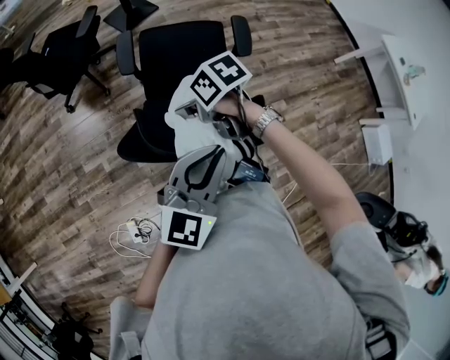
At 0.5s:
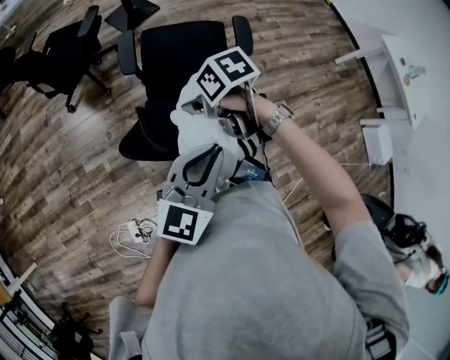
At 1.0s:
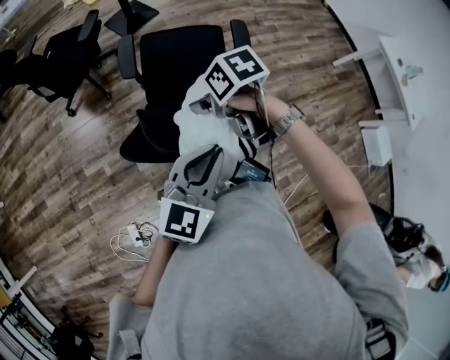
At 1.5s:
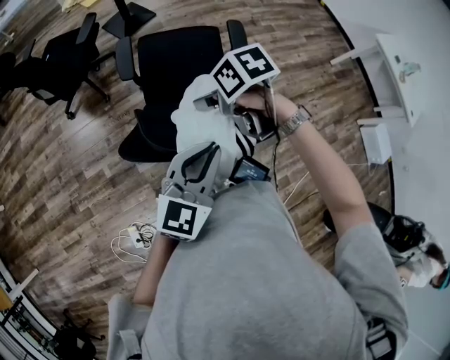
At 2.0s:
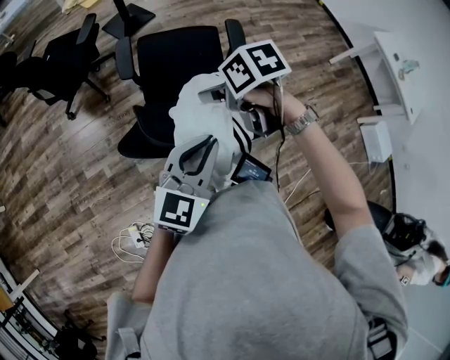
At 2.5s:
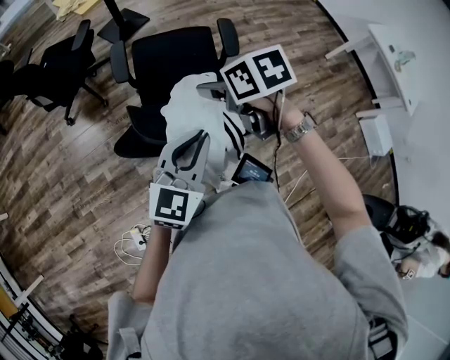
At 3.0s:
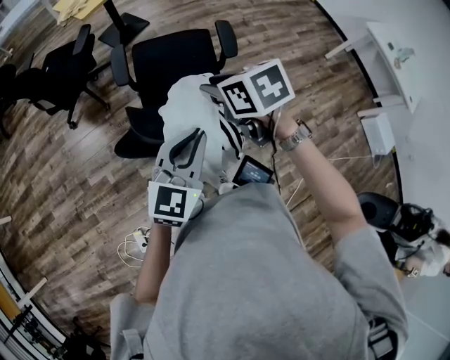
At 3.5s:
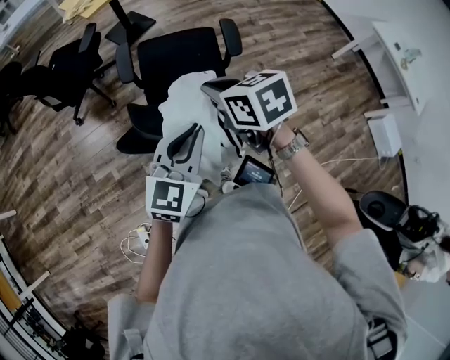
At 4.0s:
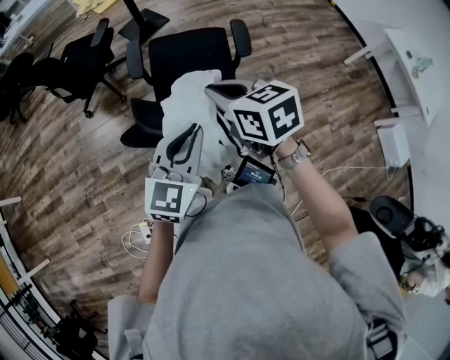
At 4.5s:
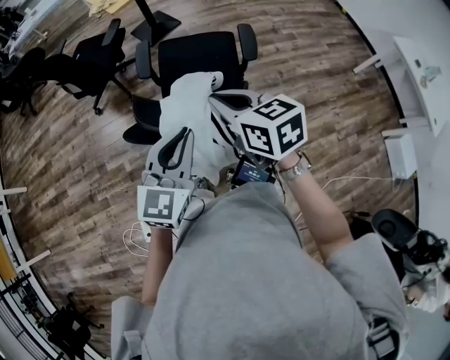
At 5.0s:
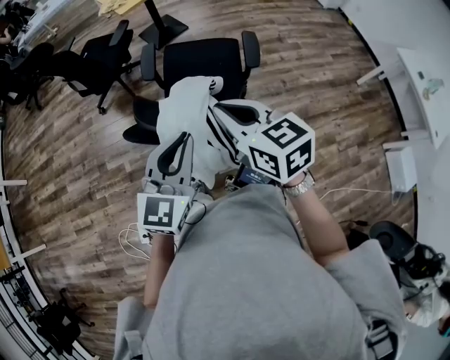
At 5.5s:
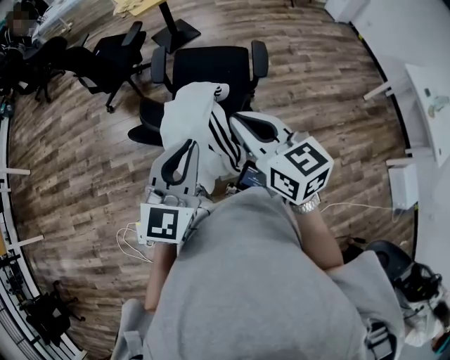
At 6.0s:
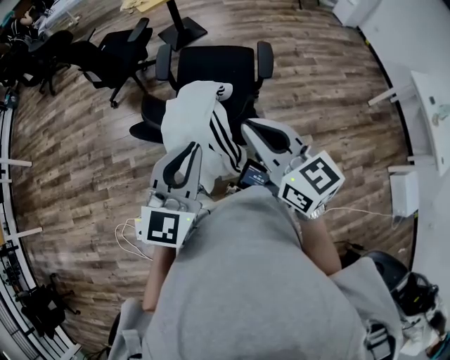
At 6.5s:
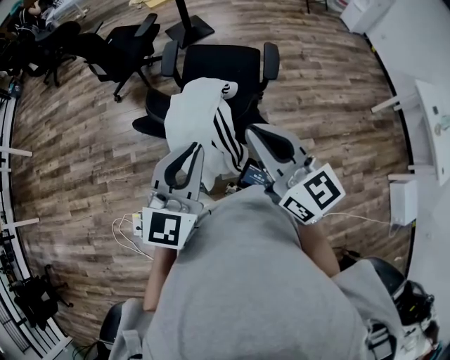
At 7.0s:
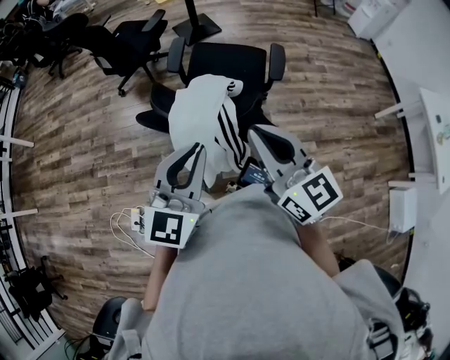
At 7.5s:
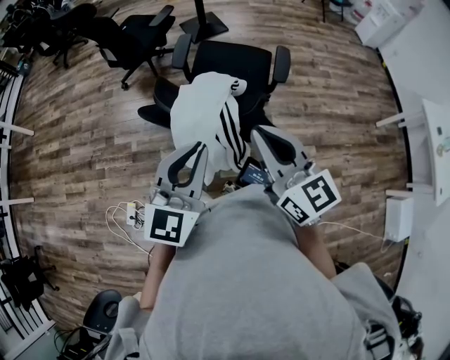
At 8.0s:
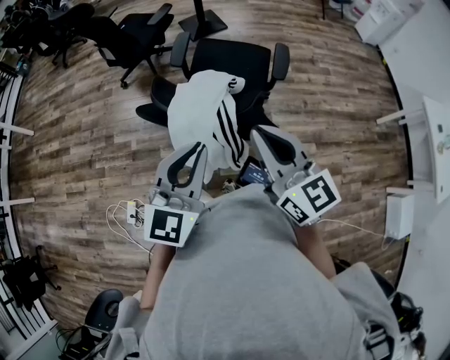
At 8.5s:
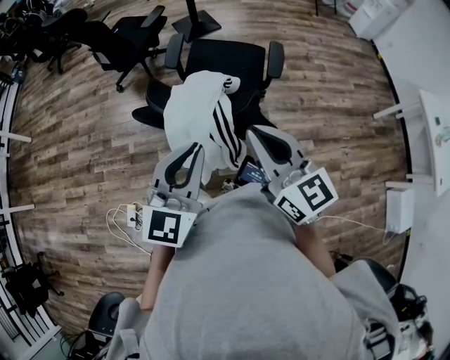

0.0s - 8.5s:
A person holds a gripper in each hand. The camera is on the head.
0.0s - 2.0s: The right gripper shifts by some 10 cm.
2.0s - 4.0s: The right gripper shifts approximately 10 cm upward and backward, rotates about 30 degrees, and closes.
4.0s - 6.5s: The left gripper heads backward and upward, covering some 10 cm. Meanwhile the right gripper shifts some 15 cm backward, upward and to the right, and points its fingers approximately 30 degrees further upward.
6.5s - 8.5s: The grippers make only small movements.

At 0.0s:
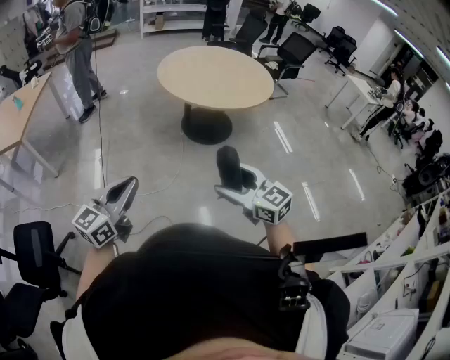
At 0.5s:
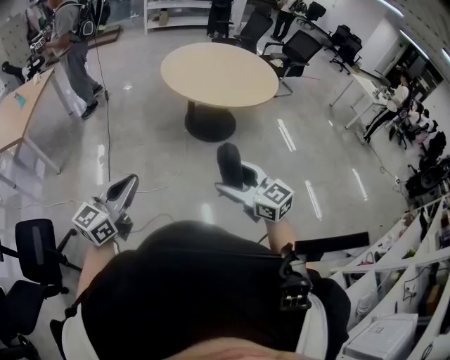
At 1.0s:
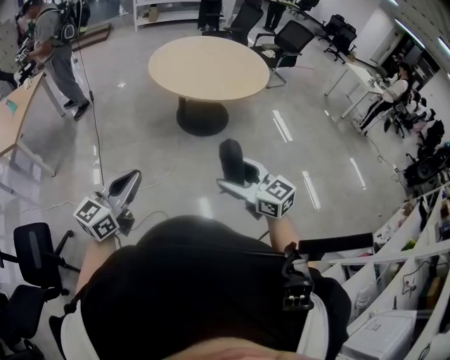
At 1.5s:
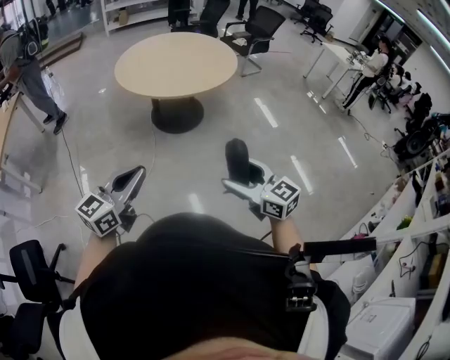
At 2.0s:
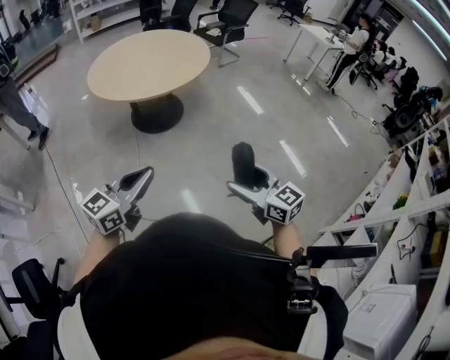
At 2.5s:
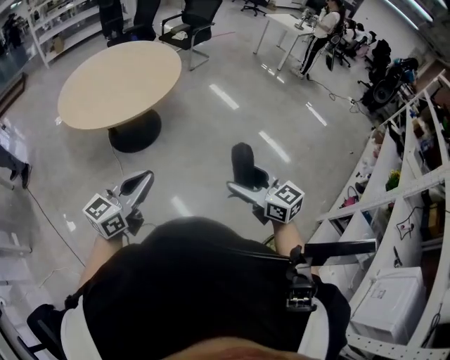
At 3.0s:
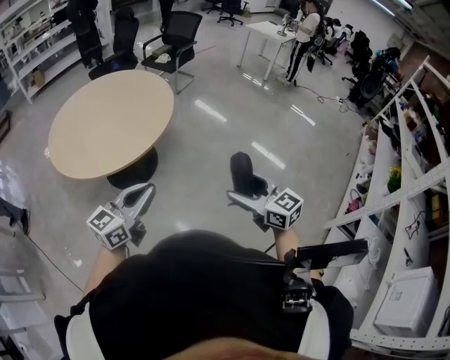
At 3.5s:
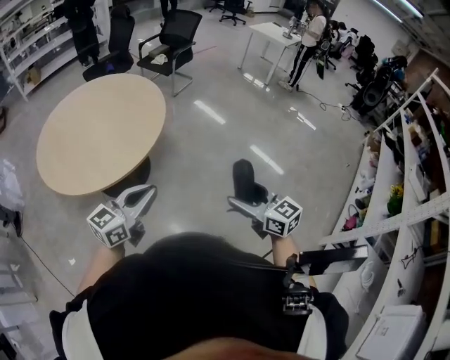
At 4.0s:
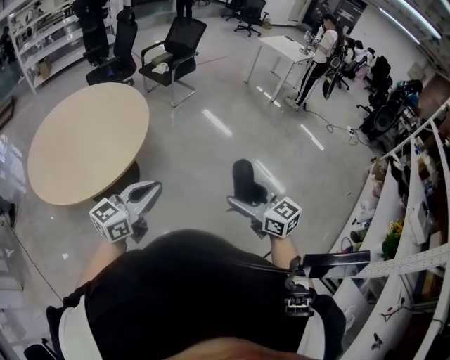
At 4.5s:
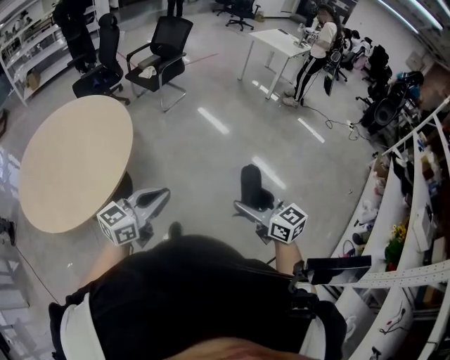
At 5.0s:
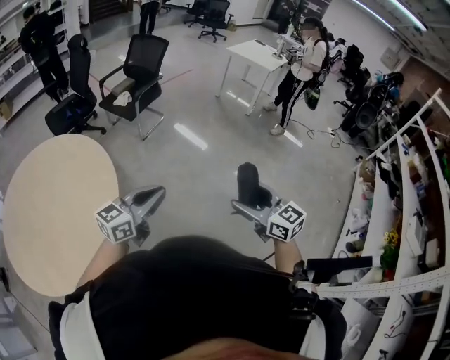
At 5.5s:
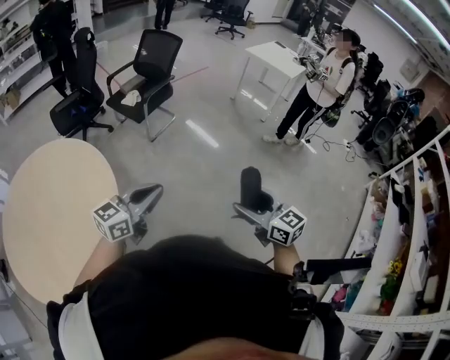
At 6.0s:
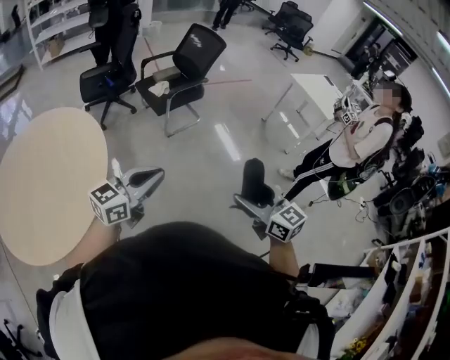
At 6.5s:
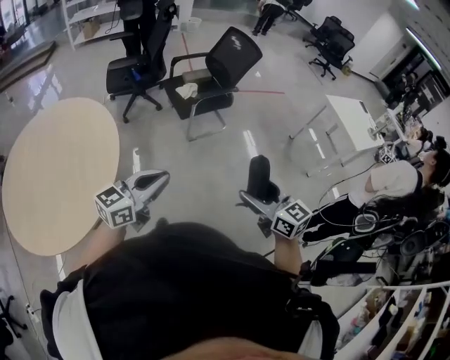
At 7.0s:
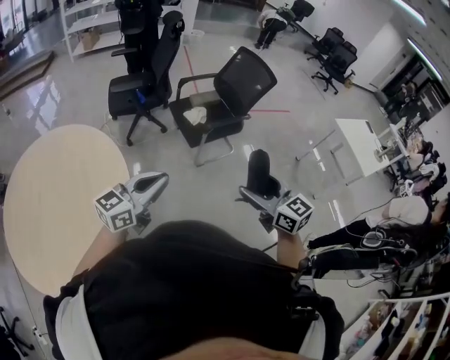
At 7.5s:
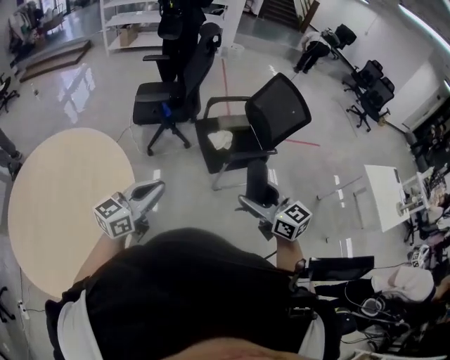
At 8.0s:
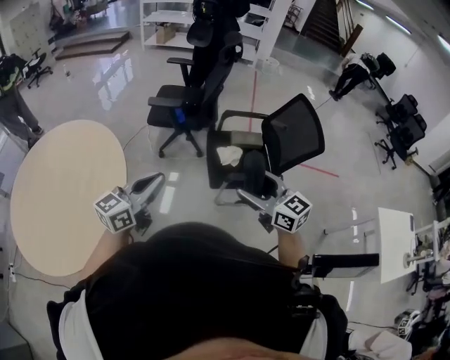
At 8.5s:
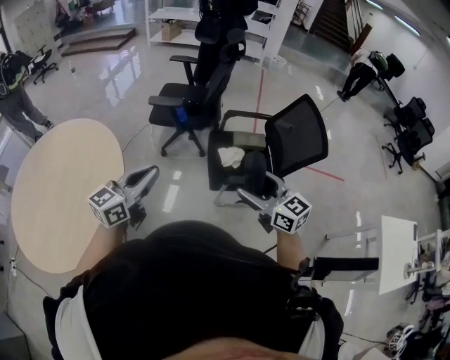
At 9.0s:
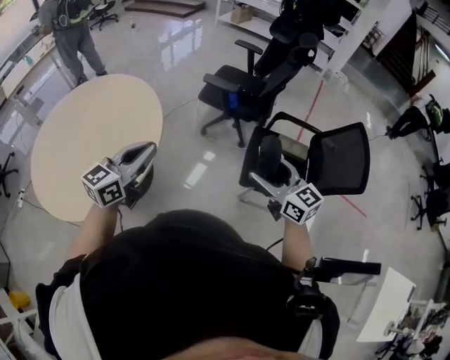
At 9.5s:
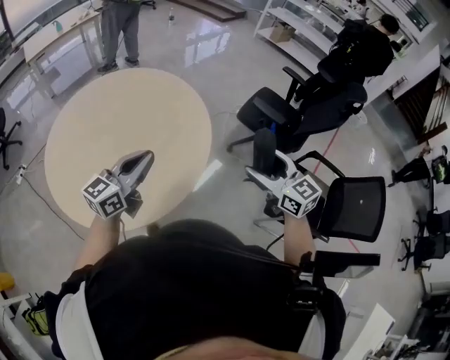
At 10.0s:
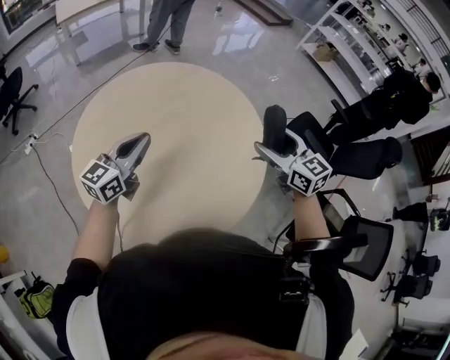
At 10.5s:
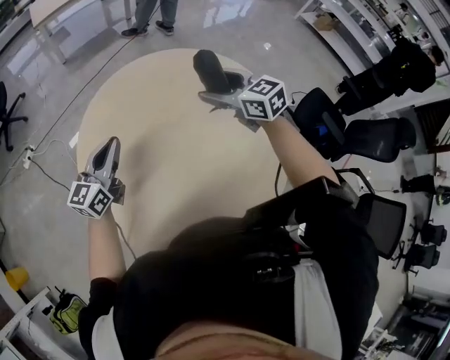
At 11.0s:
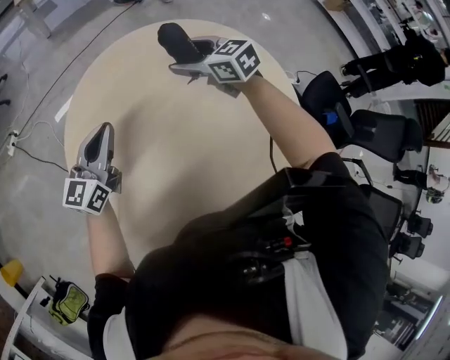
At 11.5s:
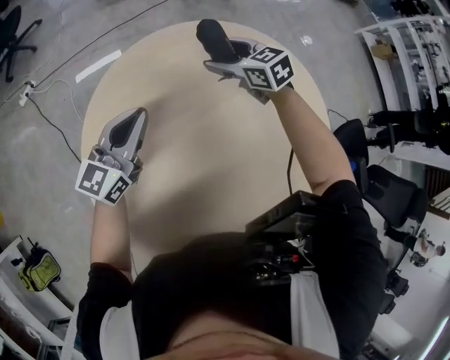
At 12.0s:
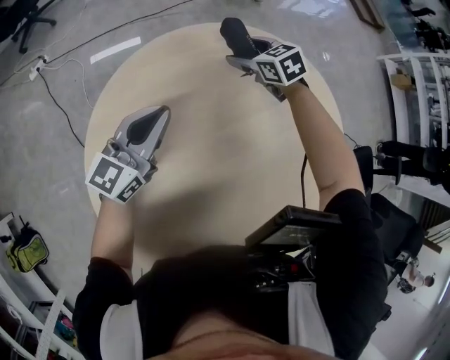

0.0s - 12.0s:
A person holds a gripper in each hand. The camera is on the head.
0.0s - 2.0s: Both grippers travel together to the right, approximately 30 cm. The left gripper swivels roughly 20 degrees, while the right gripper rotates approximately 20 degrees.
2.0s - 4.0s: Both grippers are carried forward and to the right, about 50 cm.
4.0s - 6.0s: The pair of grippers is taken forward, about 70 cm.
6.0s - 8.0s: The two grippers travel together, some 60 cm. The right gripper rotates roughly 40 degrees. The left gripper rotates approximately 40 degrees.
8.0s - 10.0s: The two grippers travel together, about 70 cm. The right gripper changes its angle by about 40 degrees. Meanwhile the left gripper changes its angle by approximately 50 degrees.
10.0s - 12.0s: The left gripper is displaced forward, downward and to the left by some 40 cm; the right gripper travels forward, downward and to the left by approximately 70 cm, and points its fingers some 30 degrees further downward.

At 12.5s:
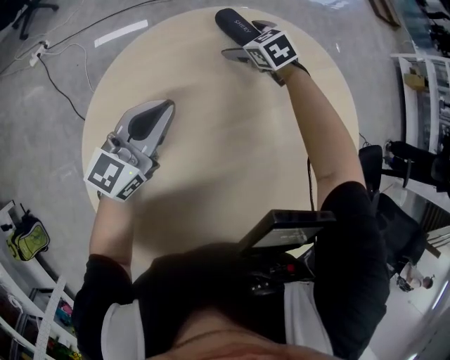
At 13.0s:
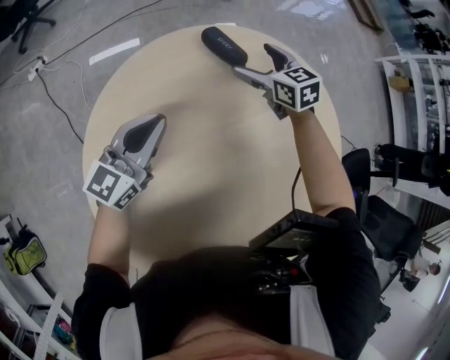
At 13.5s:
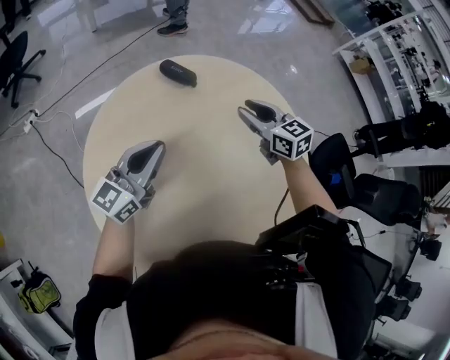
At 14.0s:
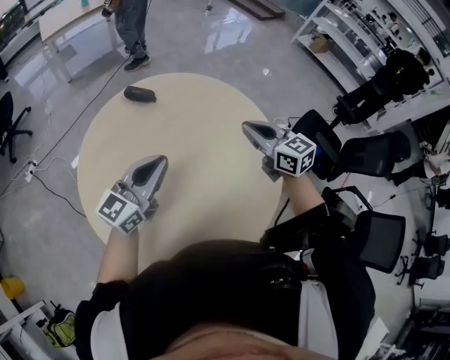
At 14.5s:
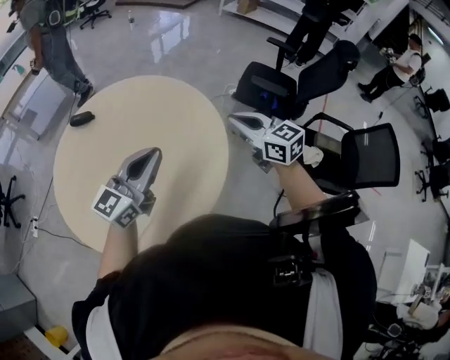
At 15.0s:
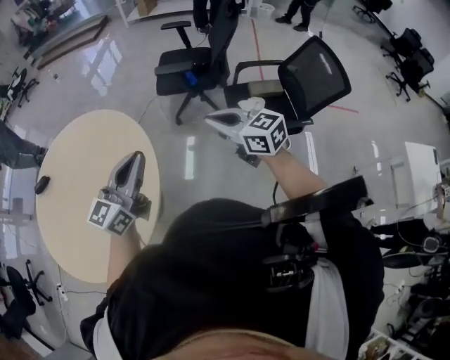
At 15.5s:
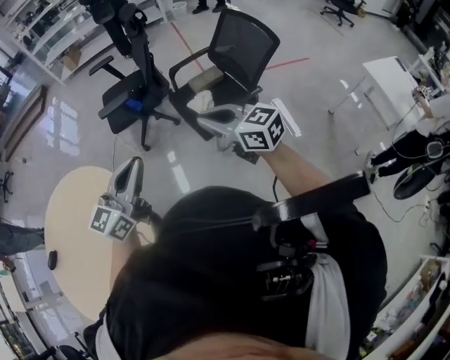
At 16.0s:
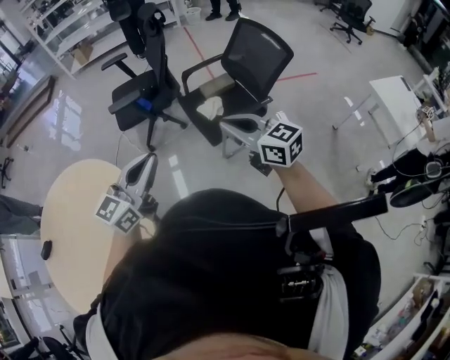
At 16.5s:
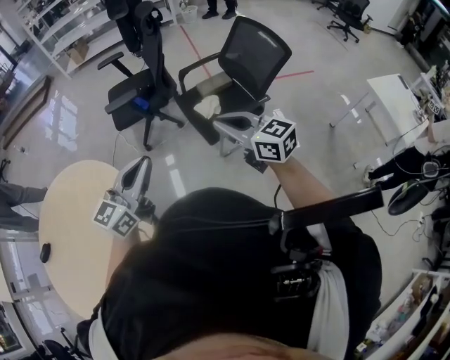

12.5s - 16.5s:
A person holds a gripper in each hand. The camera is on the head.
12.5s - 14.5s: Both grippers are carried about 70 cm. The right gripper tilts its fingers roughly 40 degrees upward, and closes its fingers, while the left gripper rotates about 40 degrees.
14.5s - 16.5s: The two grippers travel together, roughly 50 cm. The right gripper rotates roughly 40 degrees. The left gripper rotates some 40 degrees.

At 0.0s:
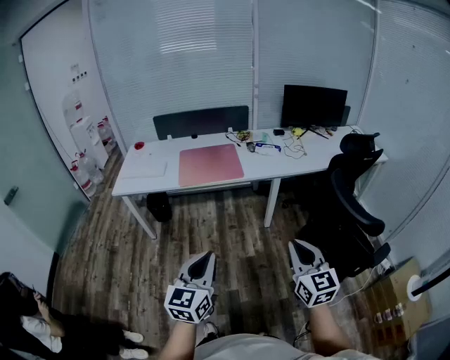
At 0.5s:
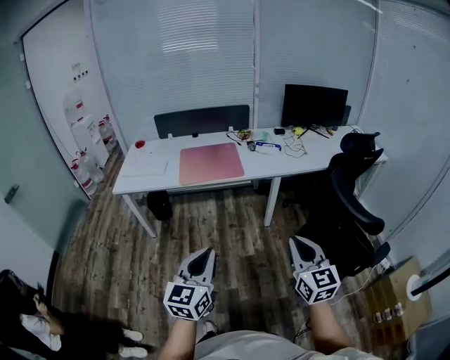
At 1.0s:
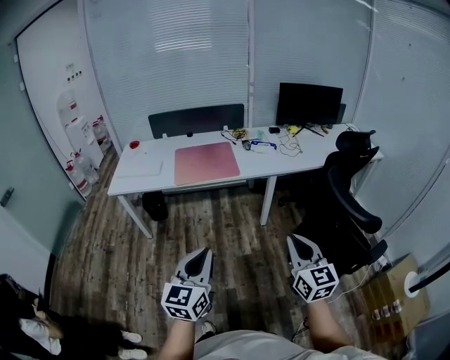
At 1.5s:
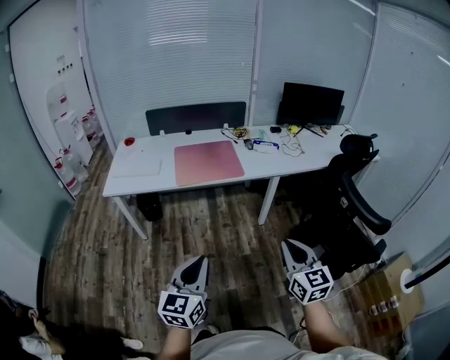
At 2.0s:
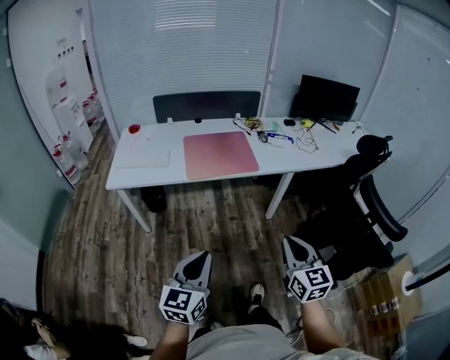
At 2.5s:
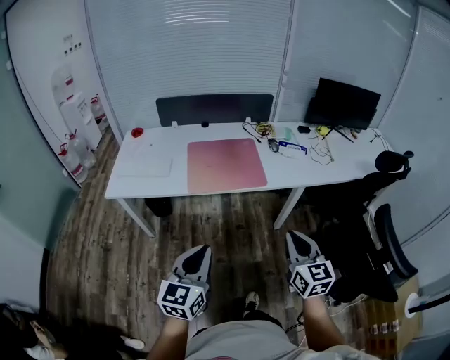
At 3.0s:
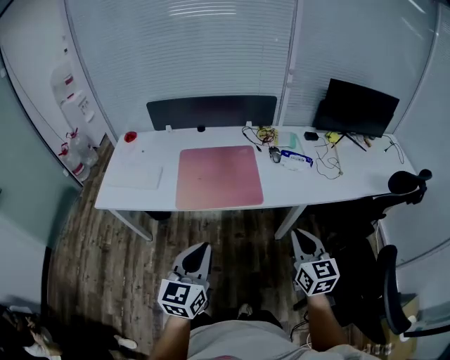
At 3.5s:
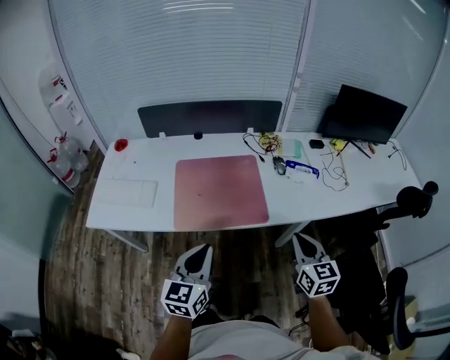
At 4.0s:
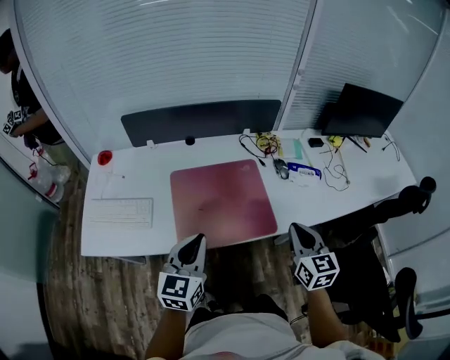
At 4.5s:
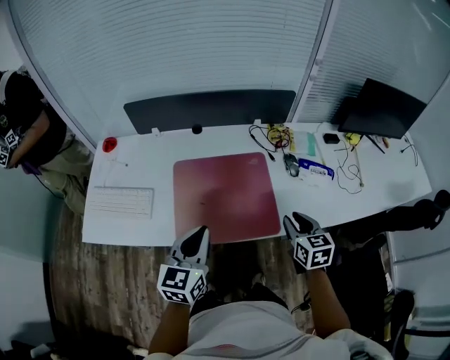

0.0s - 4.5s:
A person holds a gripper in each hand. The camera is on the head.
0.0s - 2.0s: The grippers both shift to the left and forward by some 20 cm.
2.0s - 4.5s: Both grippers are carried forward, approximately 60 cm. The right gripper swivels roughly 20 degrees, and opens up.
